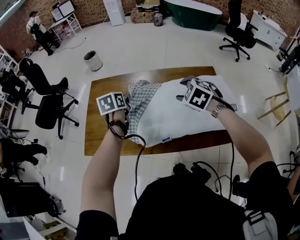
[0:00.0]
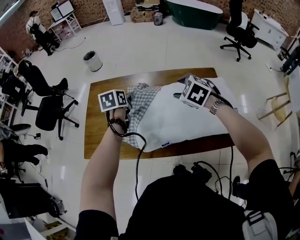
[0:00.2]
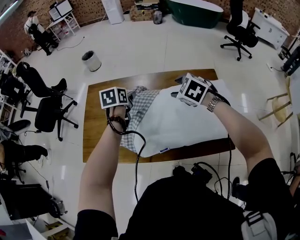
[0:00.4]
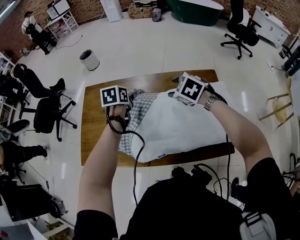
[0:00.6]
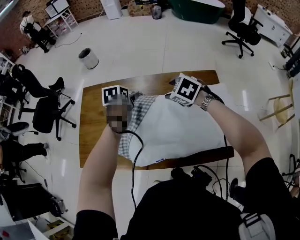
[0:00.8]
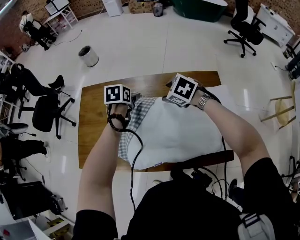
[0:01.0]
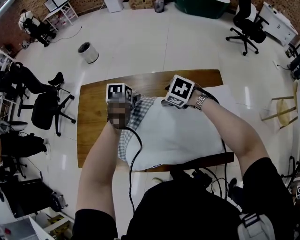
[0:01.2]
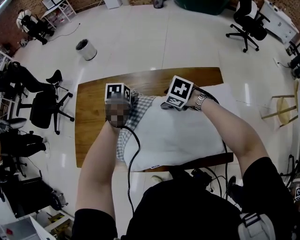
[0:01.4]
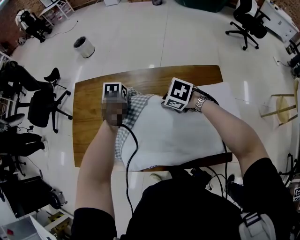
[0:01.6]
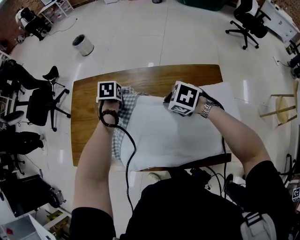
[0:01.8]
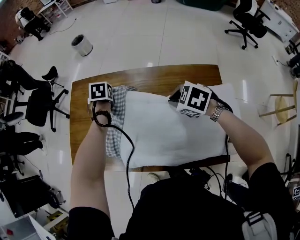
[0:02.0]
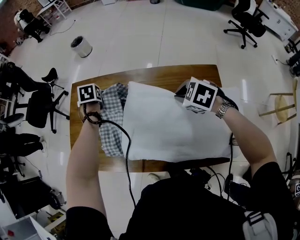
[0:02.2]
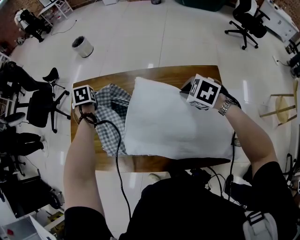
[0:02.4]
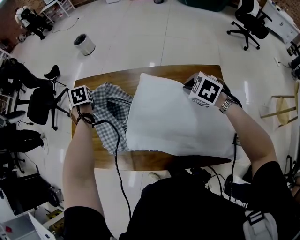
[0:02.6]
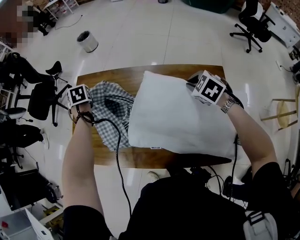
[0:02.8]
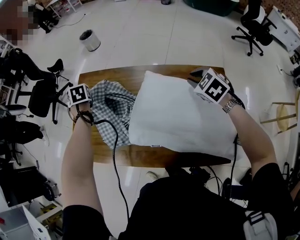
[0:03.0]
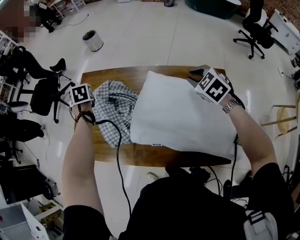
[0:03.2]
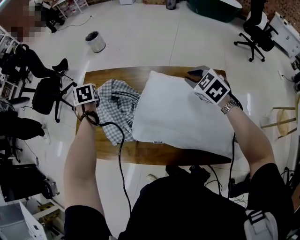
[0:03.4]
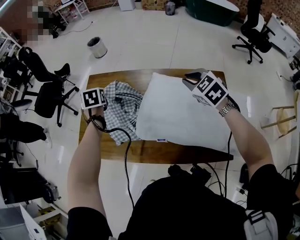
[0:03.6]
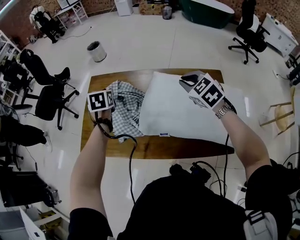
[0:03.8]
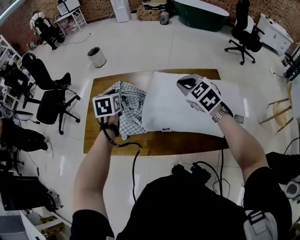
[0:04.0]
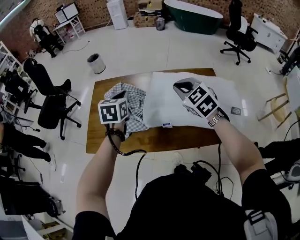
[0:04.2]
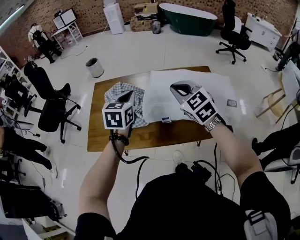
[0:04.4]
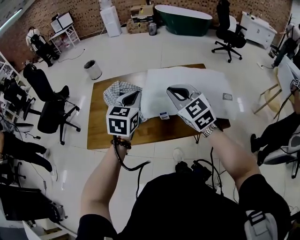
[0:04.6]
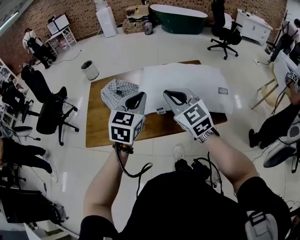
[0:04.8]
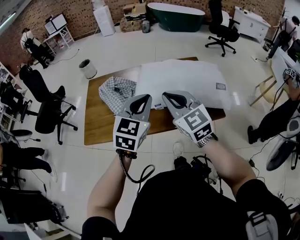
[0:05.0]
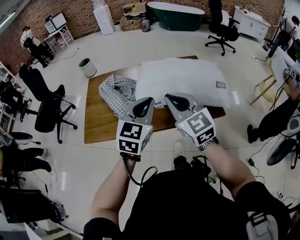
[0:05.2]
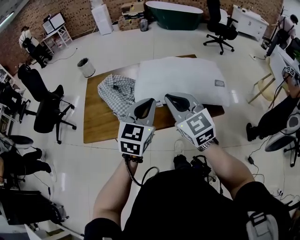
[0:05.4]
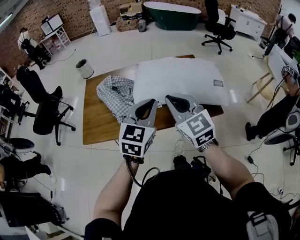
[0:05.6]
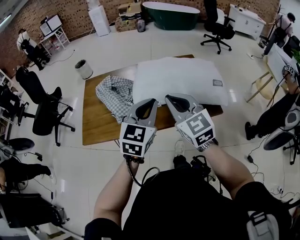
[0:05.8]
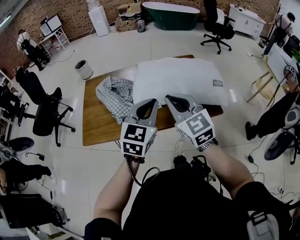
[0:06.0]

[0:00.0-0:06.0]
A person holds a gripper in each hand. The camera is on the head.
0:00.0 to 0:01.6: The left gripper travels forward, downward and to the right by some 25 cm, swivels some 30 degrees, and opens and closes again. Meanwhile the right gripper goes approximately 25 cm forward and downward, changes its angle by about 30 degrees, and closes.
0:01.6 to 0:03.0: The right gripper shifts about 15 cm to the right and upward, and swivels some 30 degrees, while the left gripper goes approximately 20 cm to the left and forward, and rotates about 30 degrees.
0:03.0 to 0:04.4: The left gripper changes place by roughly 40 cm, and tips its fingers upward by approximately 40 degrees; the right gripper changes place by approximately 40 cm, and tips its fingers upward by some 30 degrees.
0:04.4 to 0:06.0: The left gripper moves backward and to the right, about 20 cm, and rotates about 30 degrees. The right gripper shifts roughly 15 cm backward.

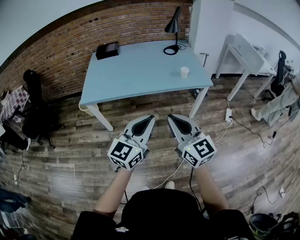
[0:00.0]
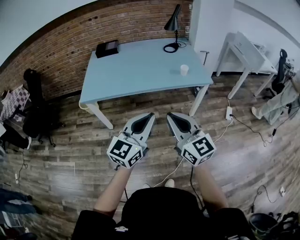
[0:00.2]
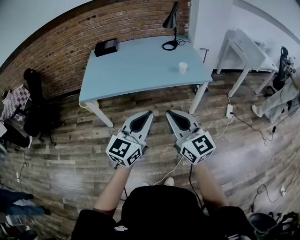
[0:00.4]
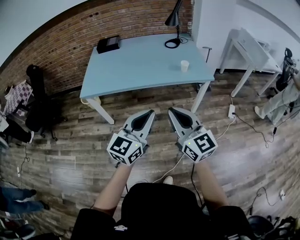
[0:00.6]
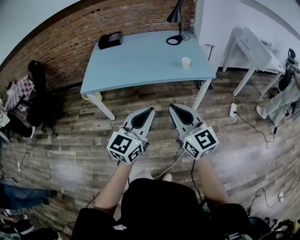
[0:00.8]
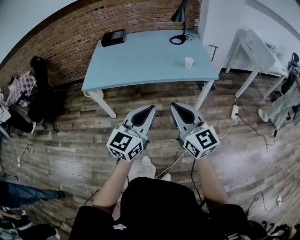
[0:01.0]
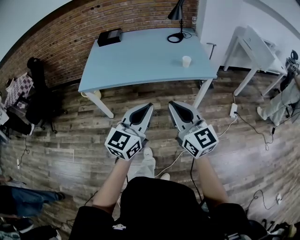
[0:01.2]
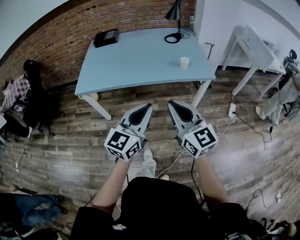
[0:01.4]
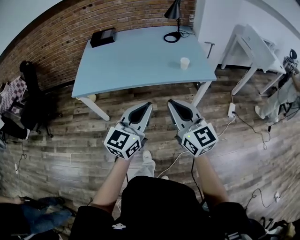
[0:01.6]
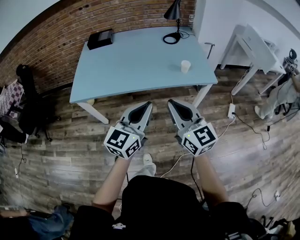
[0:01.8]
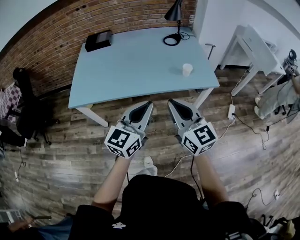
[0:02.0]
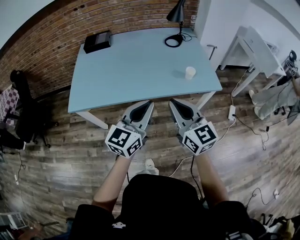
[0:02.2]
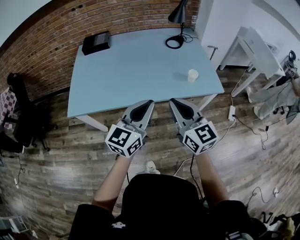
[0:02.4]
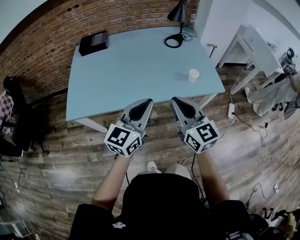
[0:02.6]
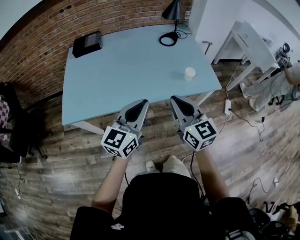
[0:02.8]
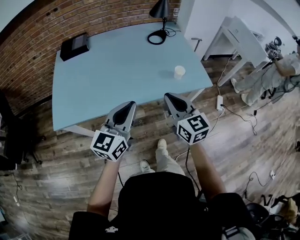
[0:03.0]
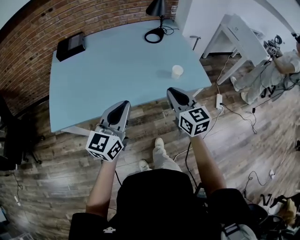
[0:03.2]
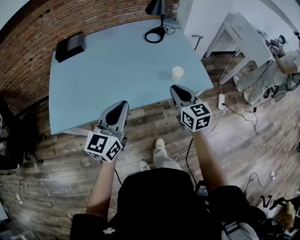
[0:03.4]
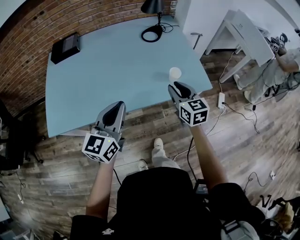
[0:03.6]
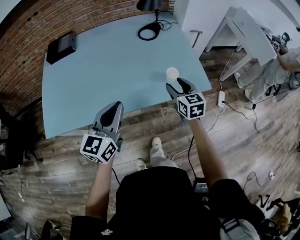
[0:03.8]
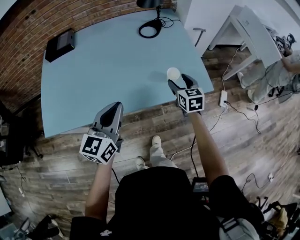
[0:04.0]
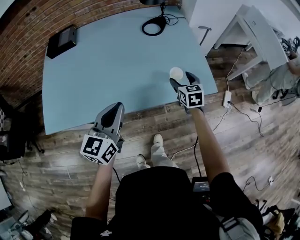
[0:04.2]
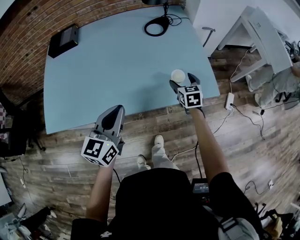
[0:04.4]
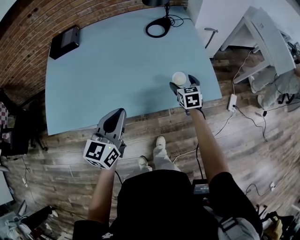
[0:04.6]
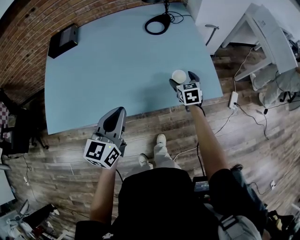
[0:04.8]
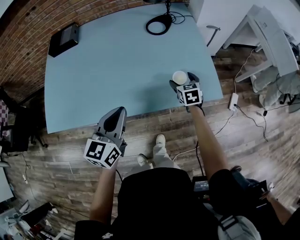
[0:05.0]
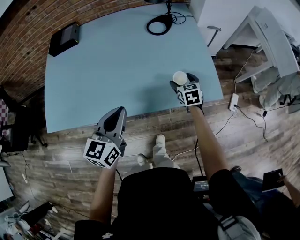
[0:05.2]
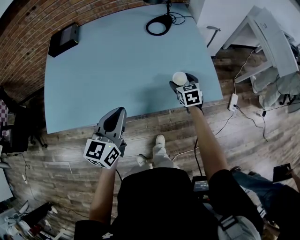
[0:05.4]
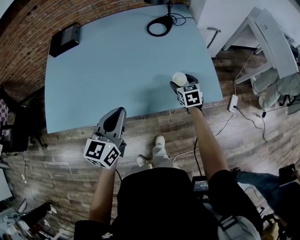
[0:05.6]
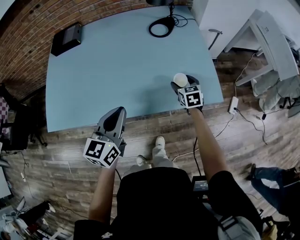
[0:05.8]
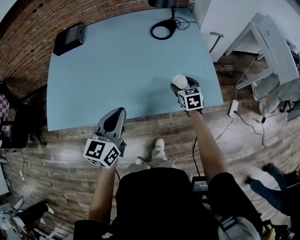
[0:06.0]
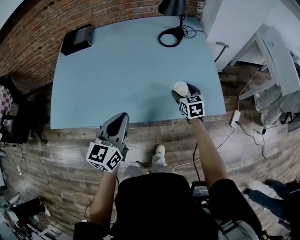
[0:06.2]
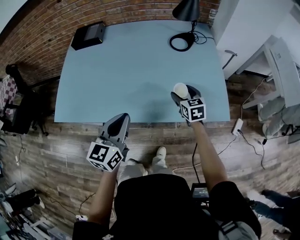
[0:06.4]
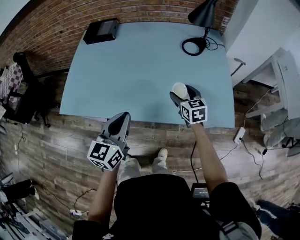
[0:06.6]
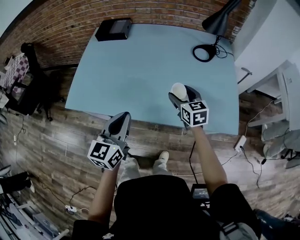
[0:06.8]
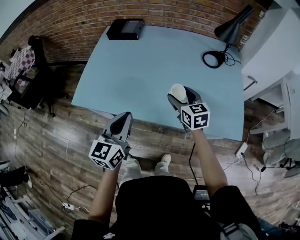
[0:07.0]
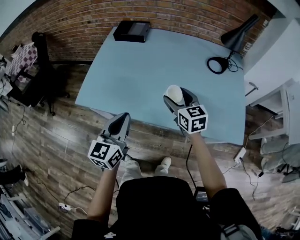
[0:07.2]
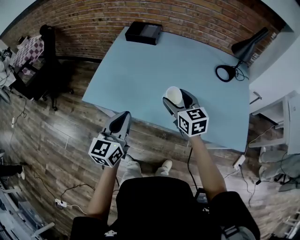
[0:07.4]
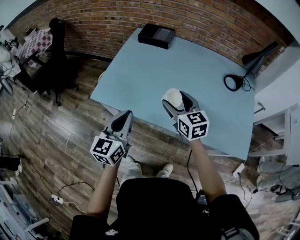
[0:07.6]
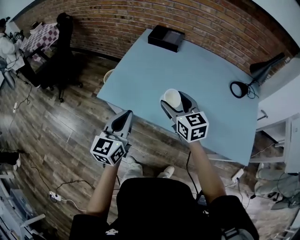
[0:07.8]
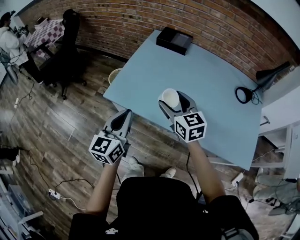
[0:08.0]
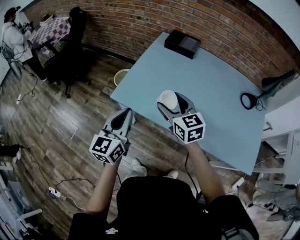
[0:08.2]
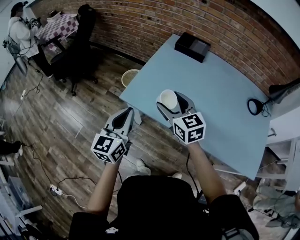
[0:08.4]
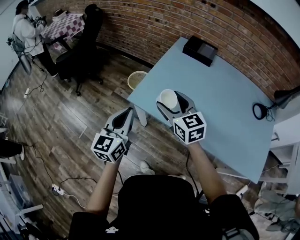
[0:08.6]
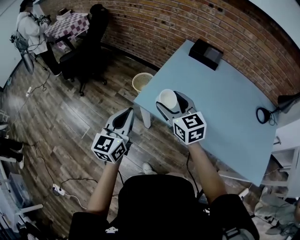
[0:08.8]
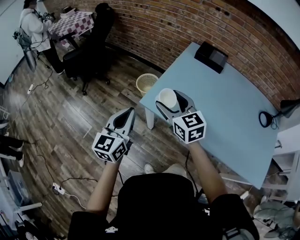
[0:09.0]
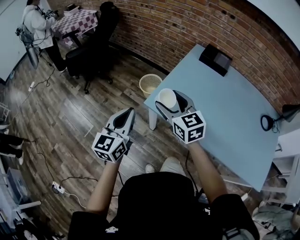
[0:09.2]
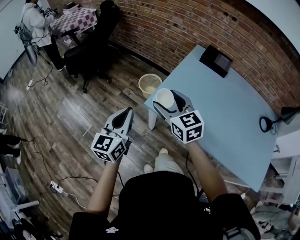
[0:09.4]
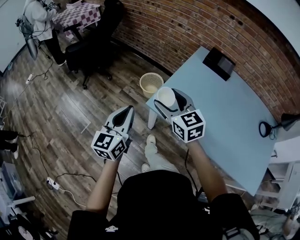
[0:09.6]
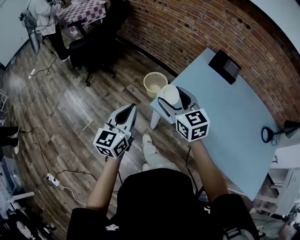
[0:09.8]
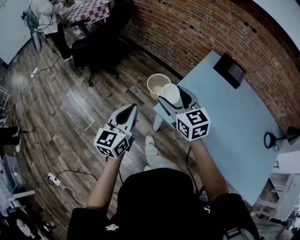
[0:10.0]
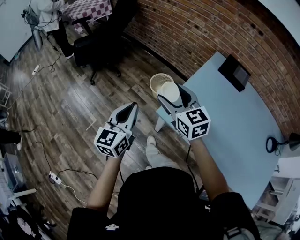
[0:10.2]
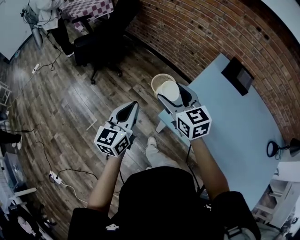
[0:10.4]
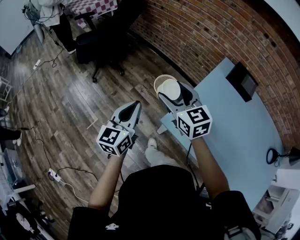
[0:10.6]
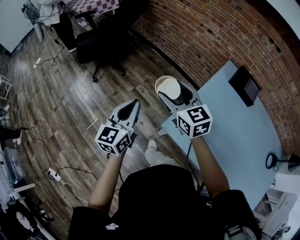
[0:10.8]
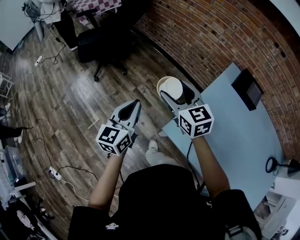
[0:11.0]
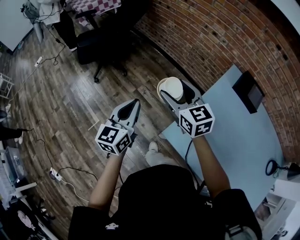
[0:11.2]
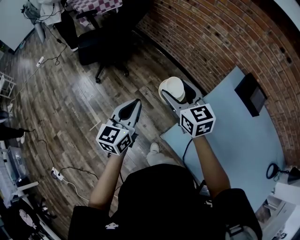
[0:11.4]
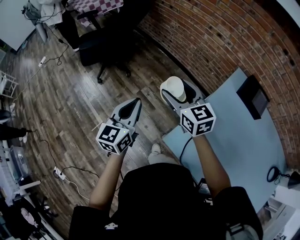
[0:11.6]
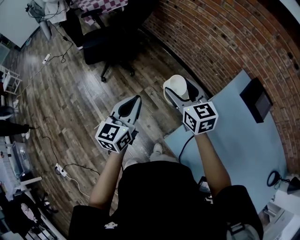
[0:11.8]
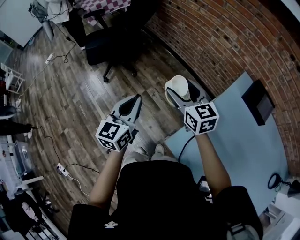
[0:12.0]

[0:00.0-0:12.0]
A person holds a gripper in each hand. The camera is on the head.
0:00.0 to 0:01.6: Both grippers move forward and to the right, about 15 cm.
0:01.6 to 0:03.0: The left gripper travels forward and to the left by about 25 cm. Meanwhile the right gripper goes approximately 25 cm forward.
0:03.0 to 0:04.4: The right gripper is displaced forward, downward and to the right by approximately 40 cm, rotates roughly 30 degrees, and opens its fingers, while the left gripper shifts approximately 15 cm forward, downward and to the right.
0:04.4 to 0:06.0: The grippers make only small movements.
0:06.0 to 0:07.6: The right gripper changes place by about 50 cm, and rotates about 40 degrees, while the left gripper moves some 30 cm, and turns by approximately 30 degrees.
0:07.6 to 0:09.0: The two grippers go about 30 cm to the left.
0:09.0 to 0:10.4: The two grippers go about 20 cm forward and to the left.
0:10.4 to 0:12.0: Both grippers move forward, about 20 cm.

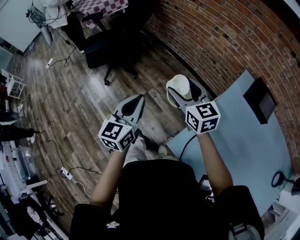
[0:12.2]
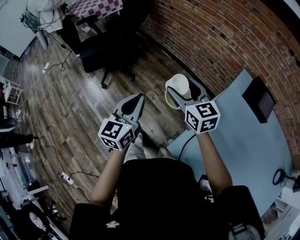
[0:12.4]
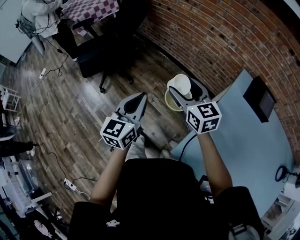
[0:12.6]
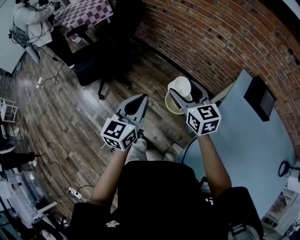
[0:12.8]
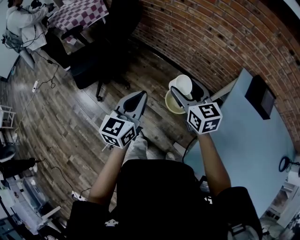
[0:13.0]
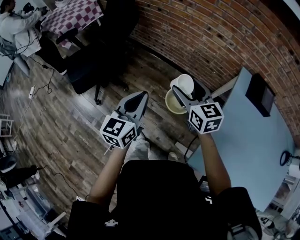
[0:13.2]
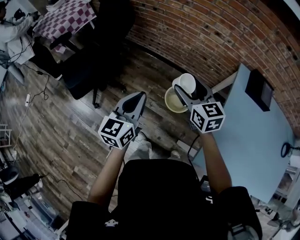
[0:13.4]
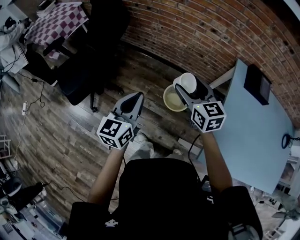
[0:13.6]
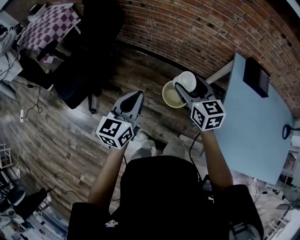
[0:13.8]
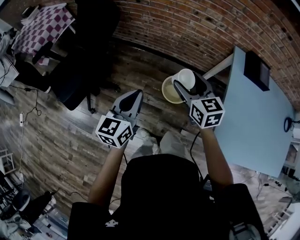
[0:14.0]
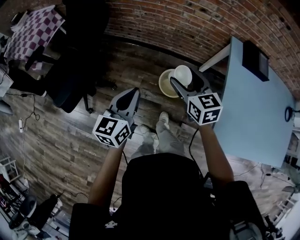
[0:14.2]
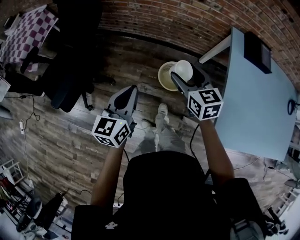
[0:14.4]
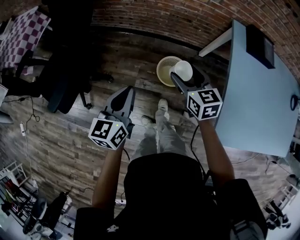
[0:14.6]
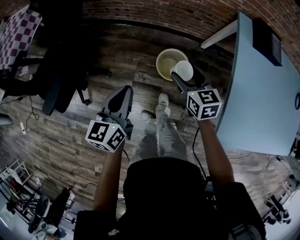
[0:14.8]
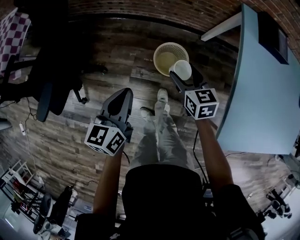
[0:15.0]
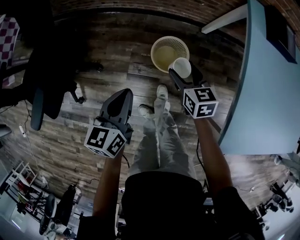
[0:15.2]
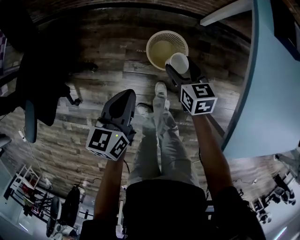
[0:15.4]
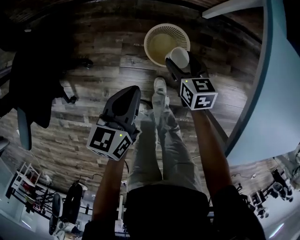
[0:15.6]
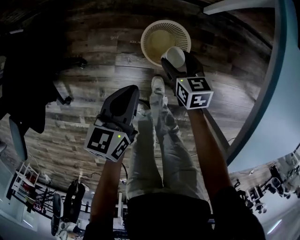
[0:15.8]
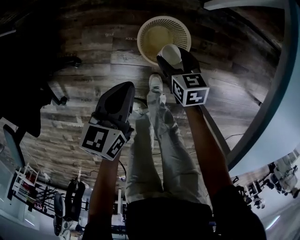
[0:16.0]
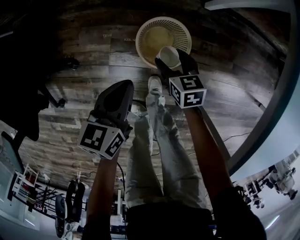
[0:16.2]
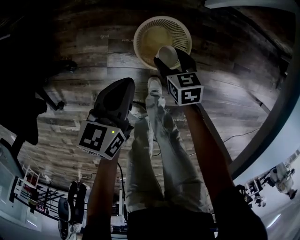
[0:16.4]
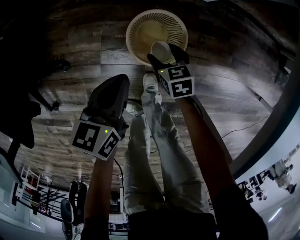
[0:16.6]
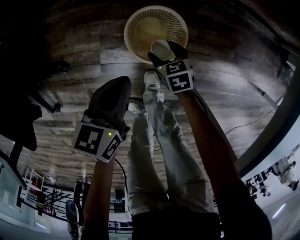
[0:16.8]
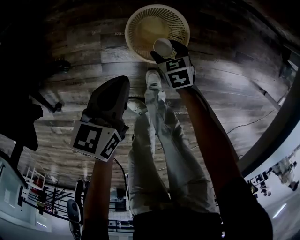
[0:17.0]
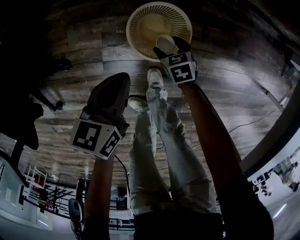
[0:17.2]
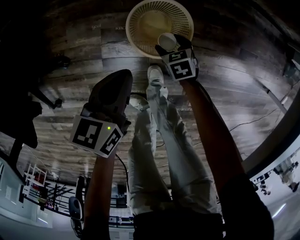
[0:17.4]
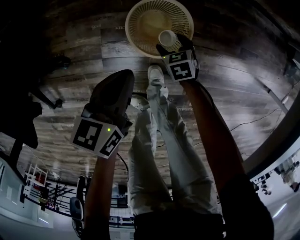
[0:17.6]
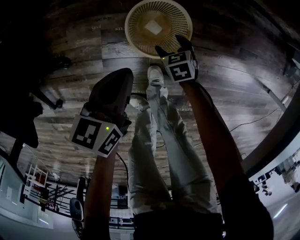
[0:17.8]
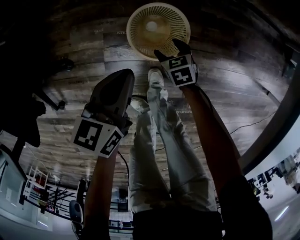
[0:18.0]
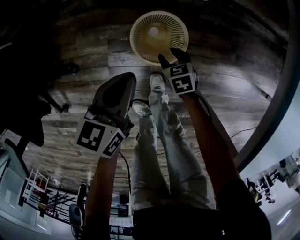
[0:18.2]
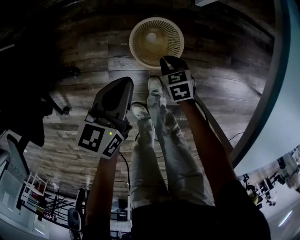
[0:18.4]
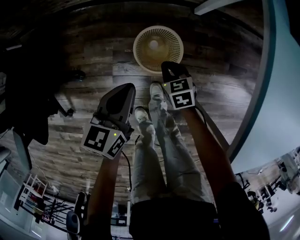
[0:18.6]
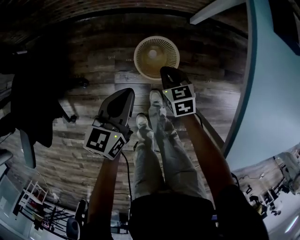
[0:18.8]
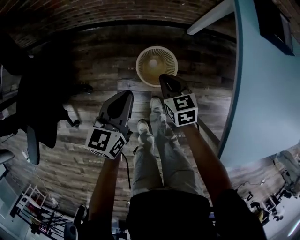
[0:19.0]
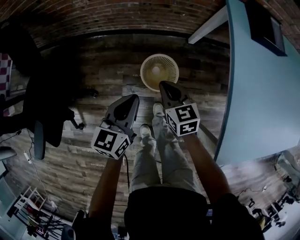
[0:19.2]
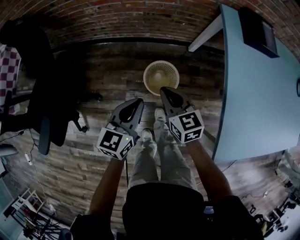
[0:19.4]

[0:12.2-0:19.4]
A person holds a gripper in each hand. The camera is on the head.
0:12.2 to 0:13.6: The right gripper moves roughly 15 cm, and turns by about 30 degrees; the left gripper shifts by about 25 cm, and swivels some 20 degrees.
0:13.6 to 0:15.0: The left gripper goes some 20 cm downward and forward; the right gripper heads downward, covering approximately 25 cm, and changes its angle by approximately 20 degrees.
0:15.0 to 0:16.6: The right gripper is displaced downward by roughly 40 cm, and rotates about 20 degrees, while the left gripper travels downward and forward by about 35 cm.
0:16.6 to 0:18.0: The right gripper travels downward by some 5 cm.
0:18.0 to 0:19.4: The right gripper travels upward by some 50 cm, tilts its fingers some 30 degrees upward, and closes up, while the left gripper is displaced upward by some 25 cm.
